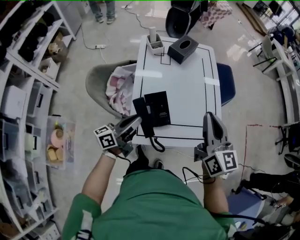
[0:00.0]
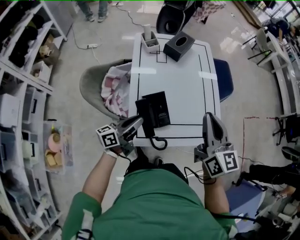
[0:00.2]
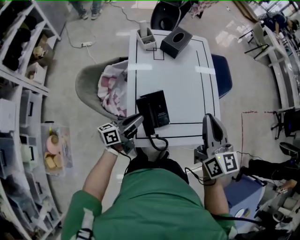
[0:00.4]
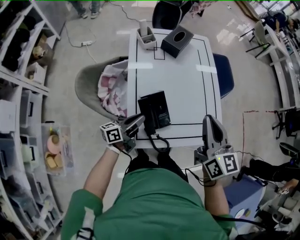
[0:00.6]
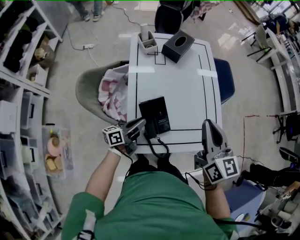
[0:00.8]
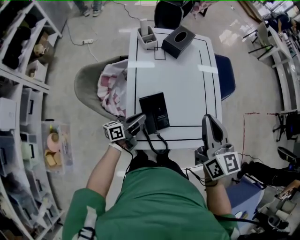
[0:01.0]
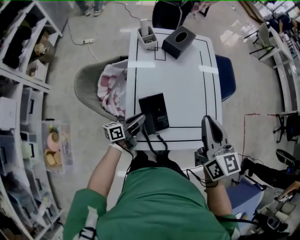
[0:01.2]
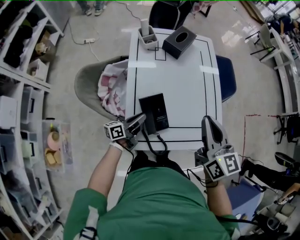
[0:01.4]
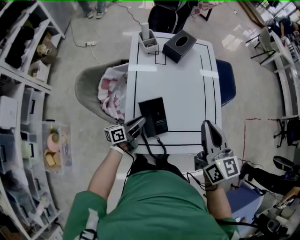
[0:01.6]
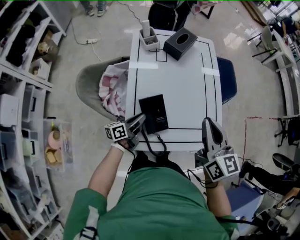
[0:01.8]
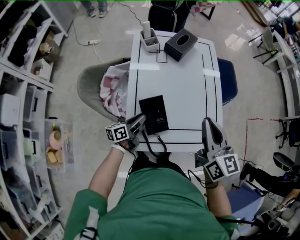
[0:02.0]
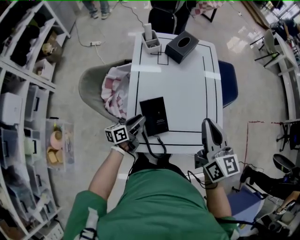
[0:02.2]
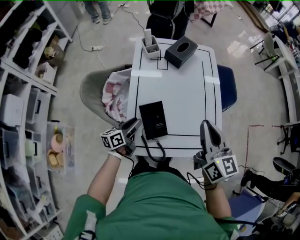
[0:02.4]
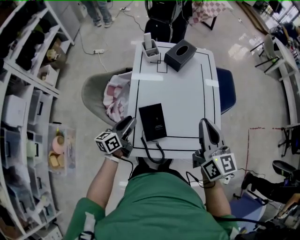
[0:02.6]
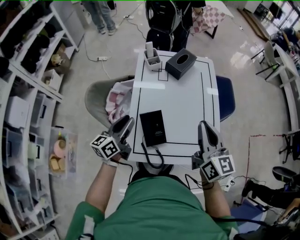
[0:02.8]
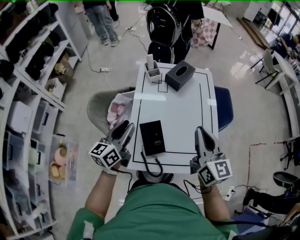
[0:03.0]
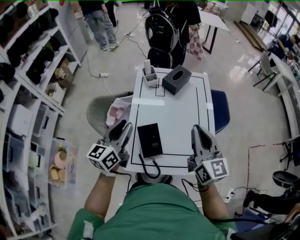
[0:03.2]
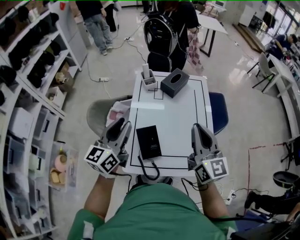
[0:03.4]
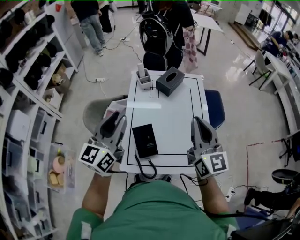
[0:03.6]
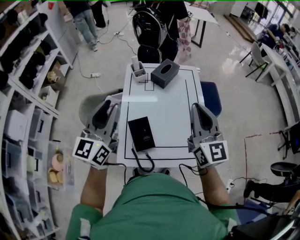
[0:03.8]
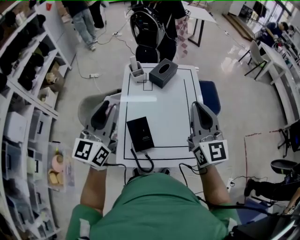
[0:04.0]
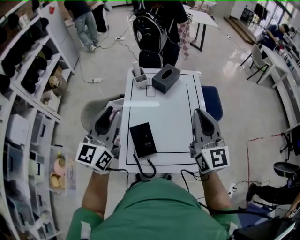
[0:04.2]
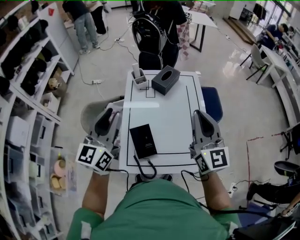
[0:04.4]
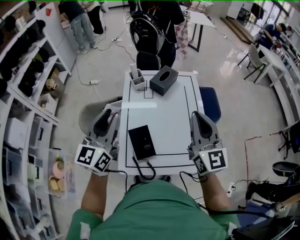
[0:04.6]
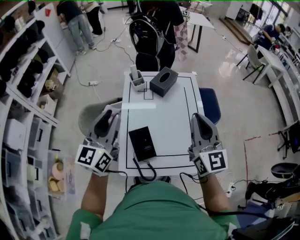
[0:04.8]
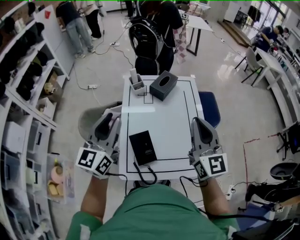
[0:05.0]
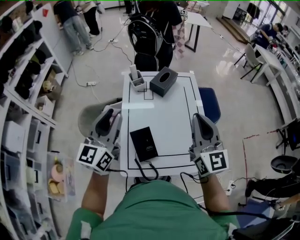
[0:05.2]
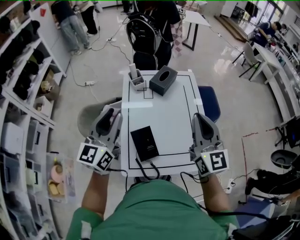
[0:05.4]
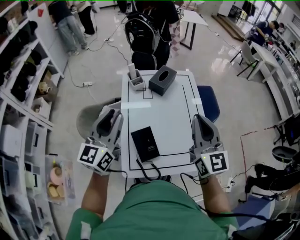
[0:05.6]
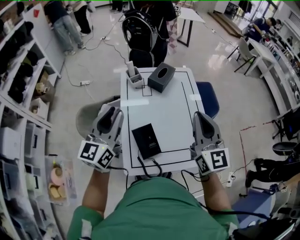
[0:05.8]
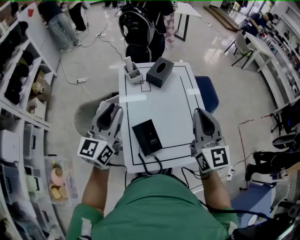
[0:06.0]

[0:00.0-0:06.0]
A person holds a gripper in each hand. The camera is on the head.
0.0 to 1.6 s: The left gripper travels downward and forward by approximately 15 cm, while the right gripper shifts by about 5 cm.
1.6 to 3.0 s: The left gripper moves upward, some 25 cm, and changes its angle by some 40 degrees. The right gripper moves roughly 5 cm.
3.0 to 4.4 s: The right gripper is displaced upward by roughly 10 cm; the left gripper travels upward by about 15 cm, and swivels some 30 degrees.
4.4 to 6.0 s: The right gripper is displaced to the left by about 5 cm. The left gripper changes place by about 10 cm.

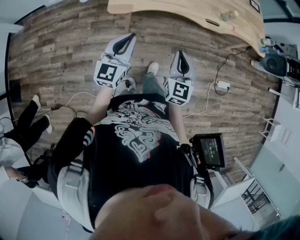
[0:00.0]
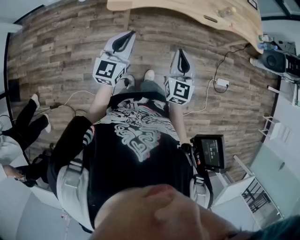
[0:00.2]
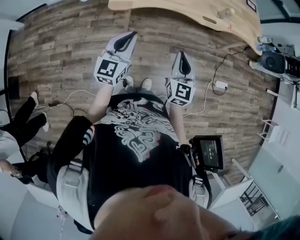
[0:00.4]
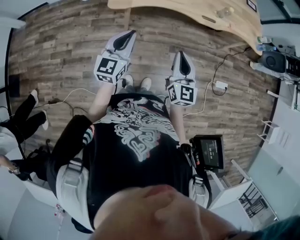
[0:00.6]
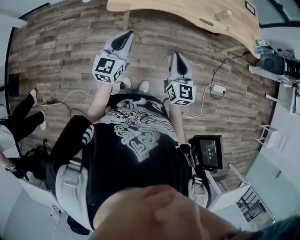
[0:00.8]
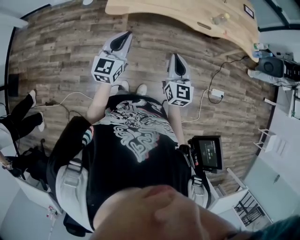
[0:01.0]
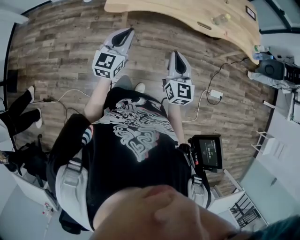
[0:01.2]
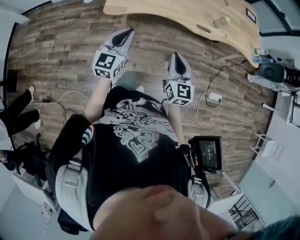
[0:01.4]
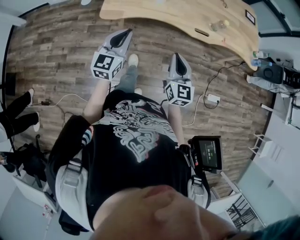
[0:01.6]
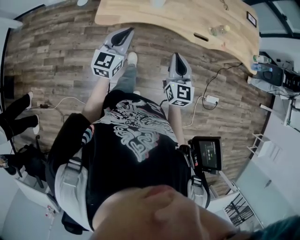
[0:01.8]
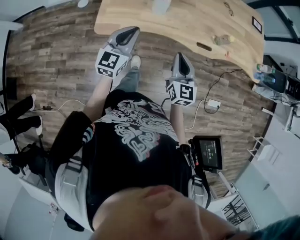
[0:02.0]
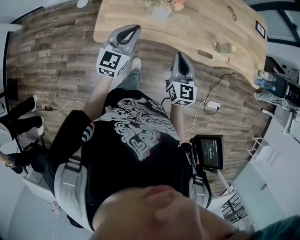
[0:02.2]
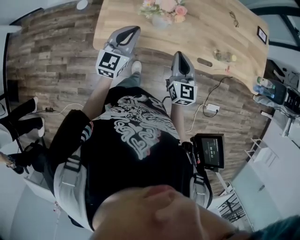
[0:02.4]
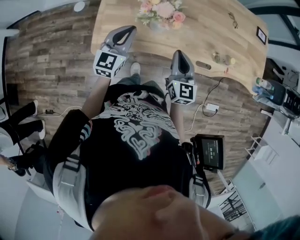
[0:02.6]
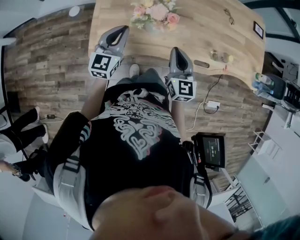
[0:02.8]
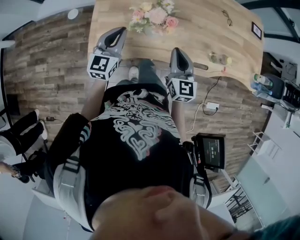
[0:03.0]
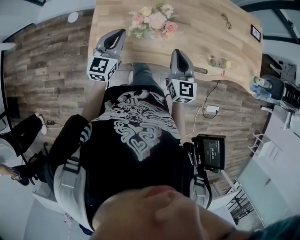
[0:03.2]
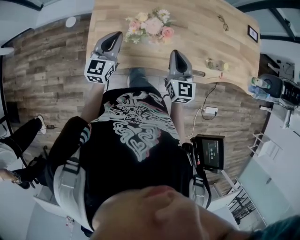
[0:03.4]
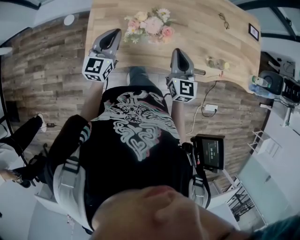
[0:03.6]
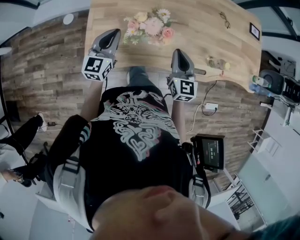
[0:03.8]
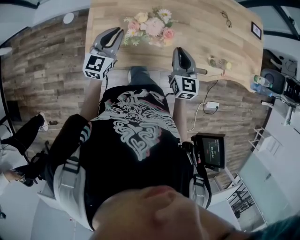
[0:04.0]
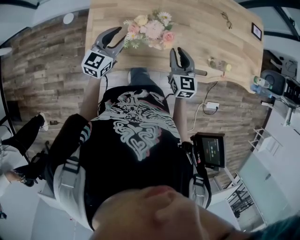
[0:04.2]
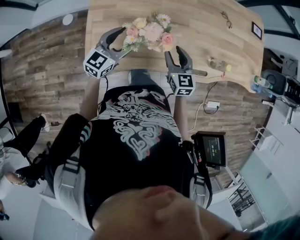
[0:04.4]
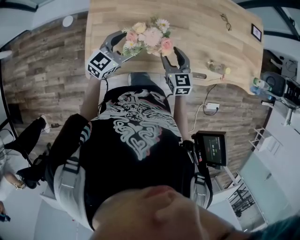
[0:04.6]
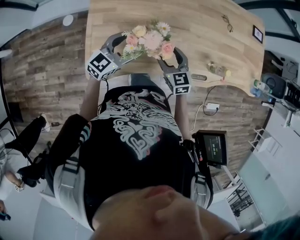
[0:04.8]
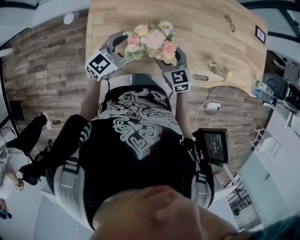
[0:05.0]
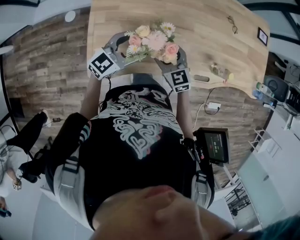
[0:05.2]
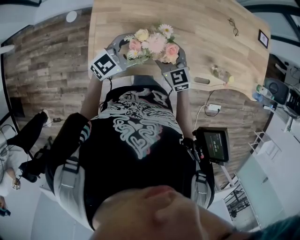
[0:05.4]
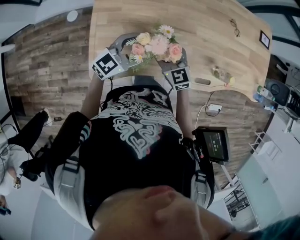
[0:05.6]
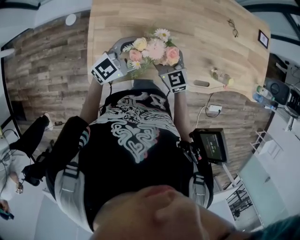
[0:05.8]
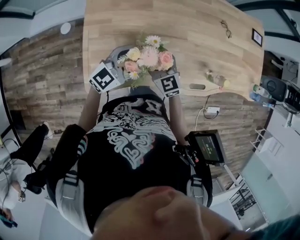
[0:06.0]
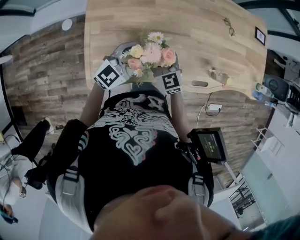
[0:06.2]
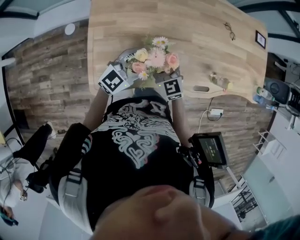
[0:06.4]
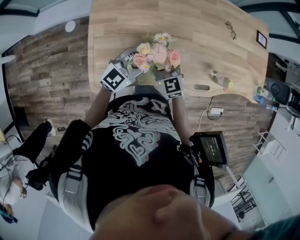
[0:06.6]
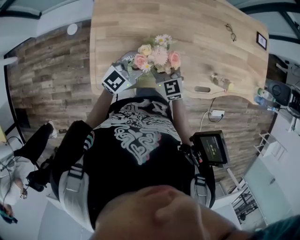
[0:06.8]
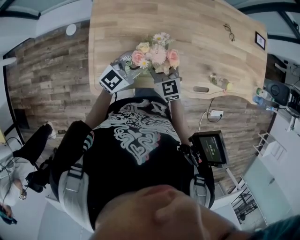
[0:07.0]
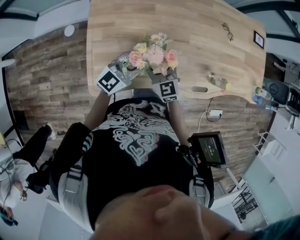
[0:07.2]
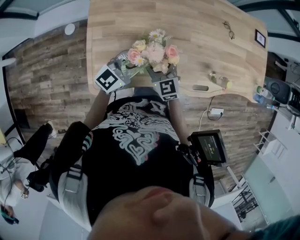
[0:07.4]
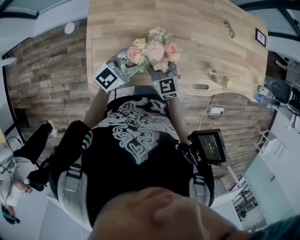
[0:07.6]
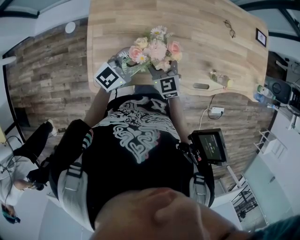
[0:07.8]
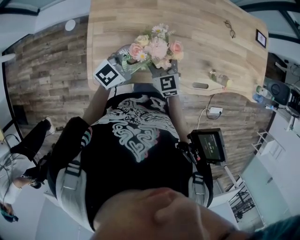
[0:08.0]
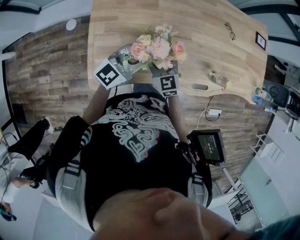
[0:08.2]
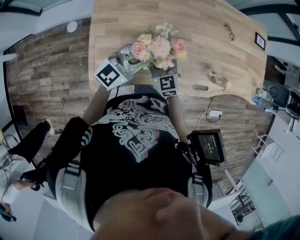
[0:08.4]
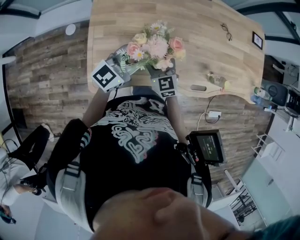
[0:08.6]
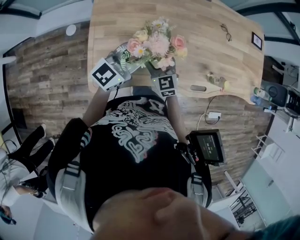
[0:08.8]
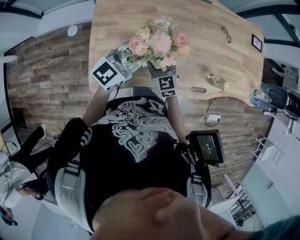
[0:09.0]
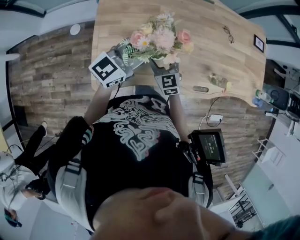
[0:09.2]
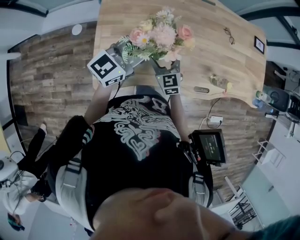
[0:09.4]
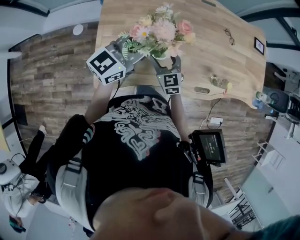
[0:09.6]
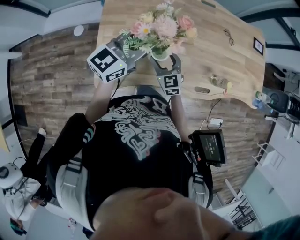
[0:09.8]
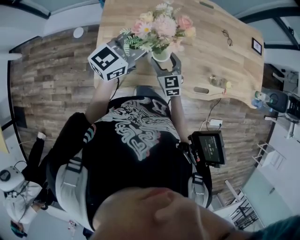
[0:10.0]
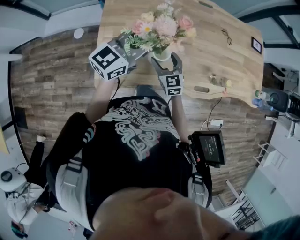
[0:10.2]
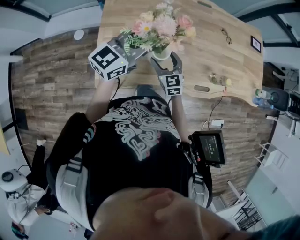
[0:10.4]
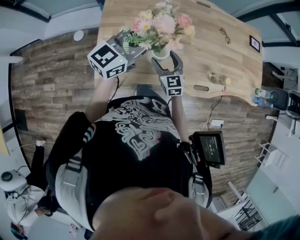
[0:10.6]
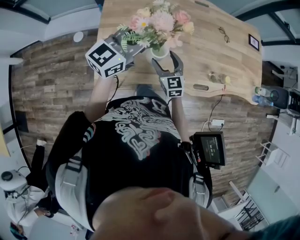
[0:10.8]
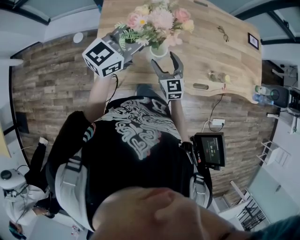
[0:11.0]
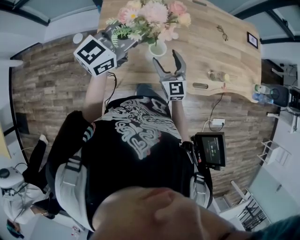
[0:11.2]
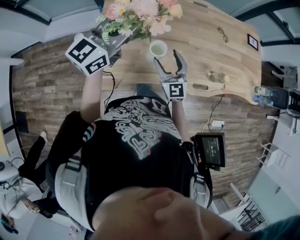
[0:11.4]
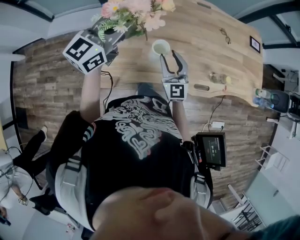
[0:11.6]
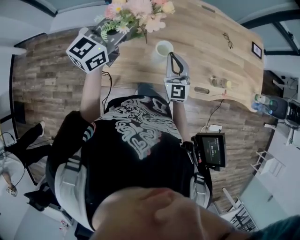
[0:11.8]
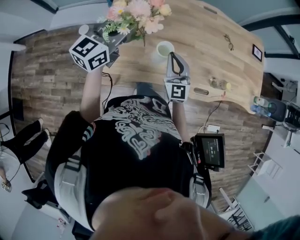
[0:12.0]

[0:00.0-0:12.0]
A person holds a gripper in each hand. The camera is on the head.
0.0 to 1.6 s: The left gripper travels to the right and forward by approximately 10 cm, while the right gripper shifts about 10 cm to the right.
1.6 to 3.0 s: The two grippers go approximately 40 cm forward.
3.0 to 4.4 s: The right gripper is displaced forward and downward by approximately 10 cm, and opens up. The left gripper moves forward, about 5 cm, changes its angle by some 20 degrees, and opens up.
4.4 to 6.0 s: The left gripper heads to the right, covering some 5 cm, and turns by about 20 degrees, while the right gripper shifts roughly 10 cm to the left and forward, rotates some 20 degrees, and opens.
6.0 to 7.6 s: The left gripper closes.
7.6 to 9.0 s: The left gripper goes roughly 5 cm upward.
9.0 to 10.4 s: The left gripper goes approximately 5 cm upward, while the right gripper ends up about 5 cm from where it was.
10.4 to 12.0 s: The left gripper heads to the left, covering some 10 cm. The right gripper is displaced upward by about 10 cm, and closes.

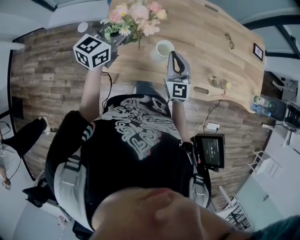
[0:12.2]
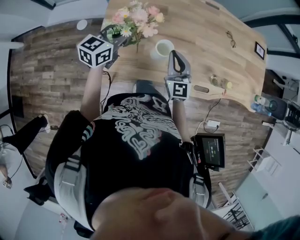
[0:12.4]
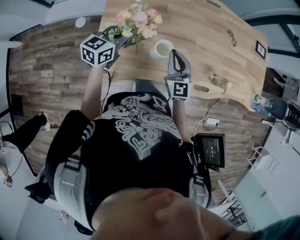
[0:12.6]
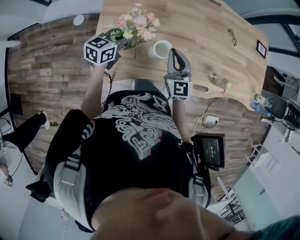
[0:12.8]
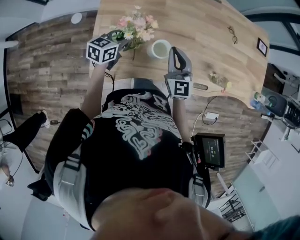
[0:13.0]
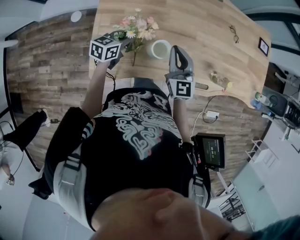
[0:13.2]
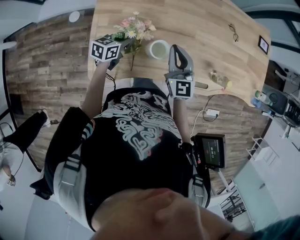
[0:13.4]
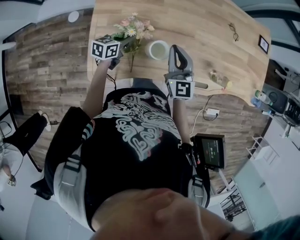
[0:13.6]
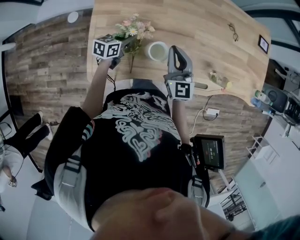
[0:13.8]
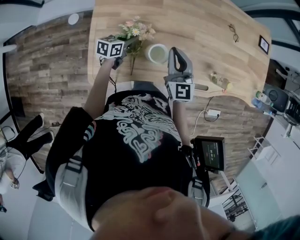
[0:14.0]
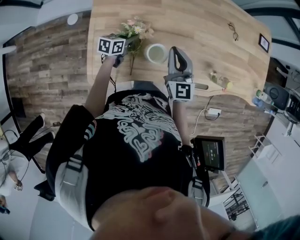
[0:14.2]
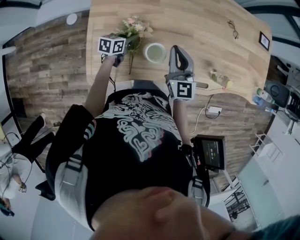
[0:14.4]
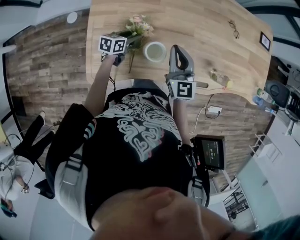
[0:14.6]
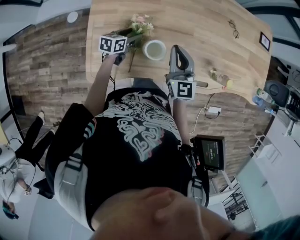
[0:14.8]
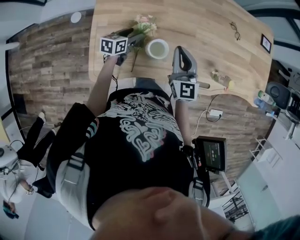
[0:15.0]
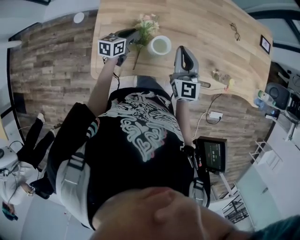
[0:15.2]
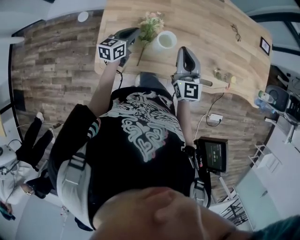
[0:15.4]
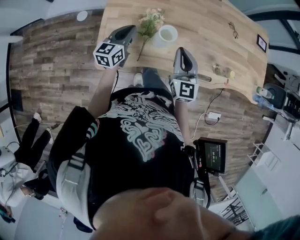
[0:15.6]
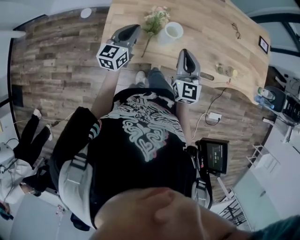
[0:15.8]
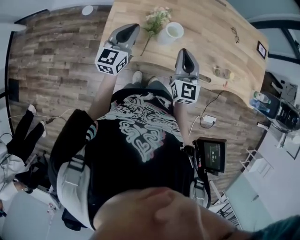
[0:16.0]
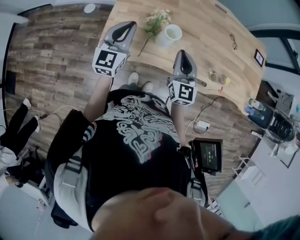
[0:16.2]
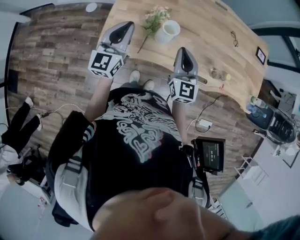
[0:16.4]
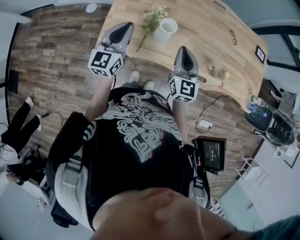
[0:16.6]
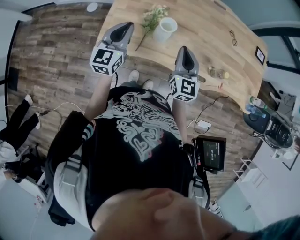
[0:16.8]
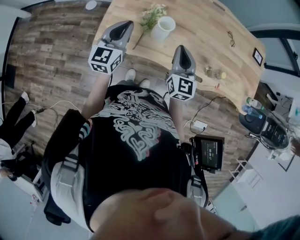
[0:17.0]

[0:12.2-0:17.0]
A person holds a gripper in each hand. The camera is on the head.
12.2 to 13.8 s: The right gripper shifts roughly 5 cm forward. The left gripper heads downward, covering approximately 25 cm, and turns by some 30 degrees.
13.8 to 15.4 s: The left gripper heads upward and backward, covering about 15 cm, swivels some 20 degrees, and opens and closes again, while the right gripper heads backward and upward, covering about 15 cm.
15.4 to 17.0 s: The left gripper heads upward and backward, covering roughly 15 cm, and turns by about 30 degrees.

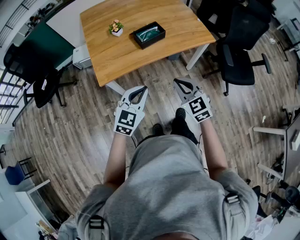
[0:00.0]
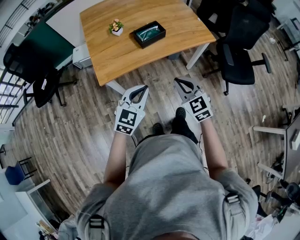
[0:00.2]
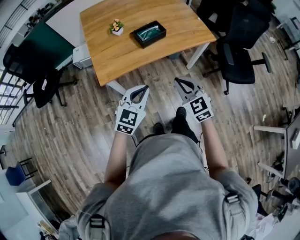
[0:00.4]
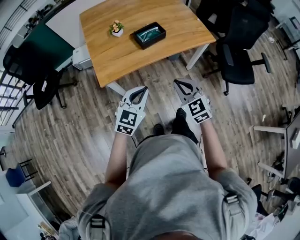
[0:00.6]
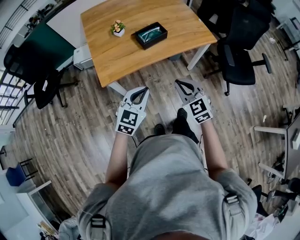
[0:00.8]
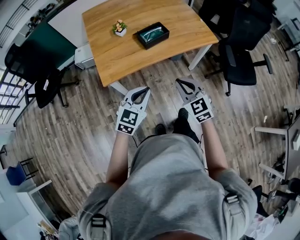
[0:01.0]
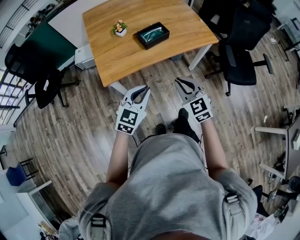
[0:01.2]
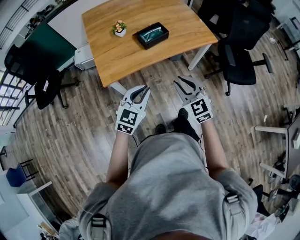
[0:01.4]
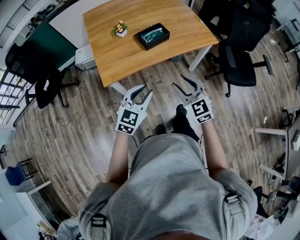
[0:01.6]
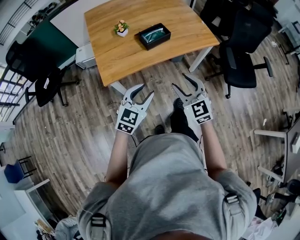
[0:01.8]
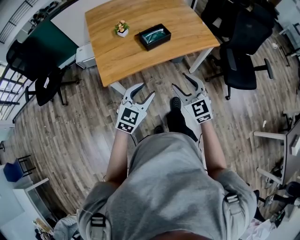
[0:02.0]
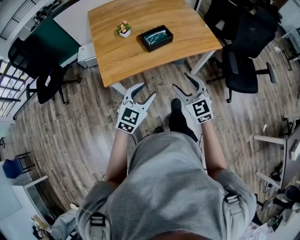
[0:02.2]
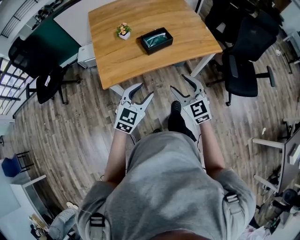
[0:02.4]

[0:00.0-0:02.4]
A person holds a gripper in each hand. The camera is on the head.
0.0 to 1.2 s: There are only small adjustments of the grippers.
1.2 to 2.4 s: The right gripper opens up. Meanwhile the left gripper opens its fingers.
